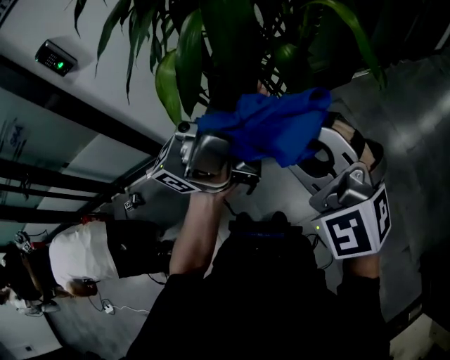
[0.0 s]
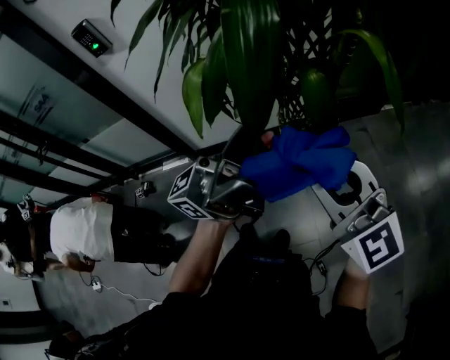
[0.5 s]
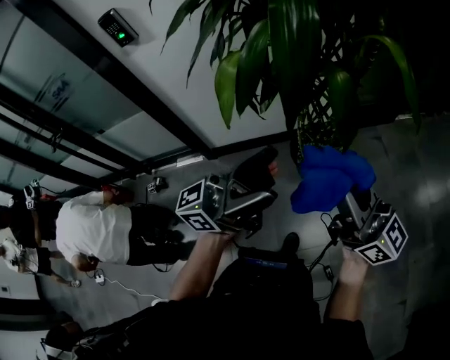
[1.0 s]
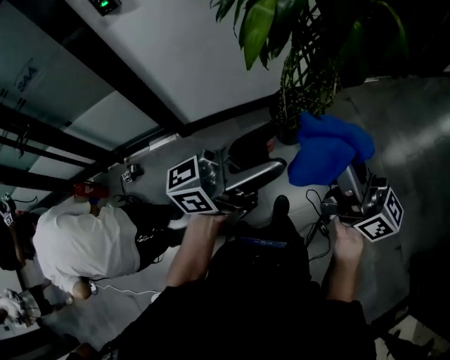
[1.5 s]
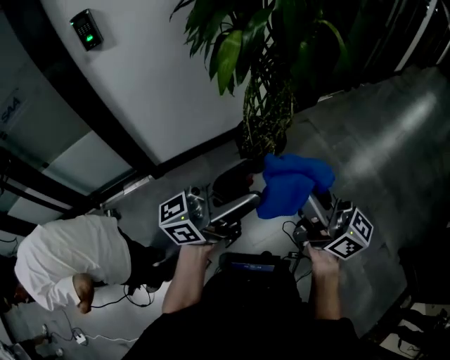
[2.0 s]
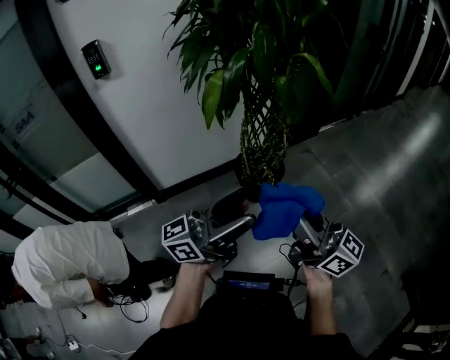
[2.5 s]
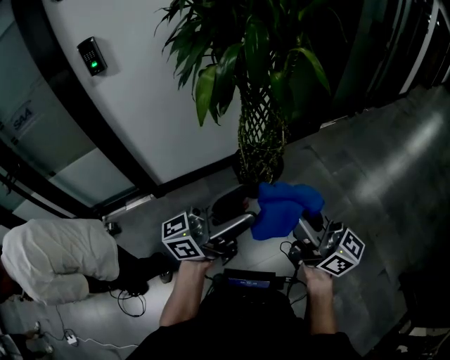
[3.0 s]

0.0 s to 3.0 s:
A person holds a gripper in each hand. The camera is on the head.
0.0 to 1.5 s: The left gripper heads backward, downward and to the left, covering about 20 cm, and swivels about 30 degrees. Meanwhile the right gripper shifts approximately 10 cm backward, and twists approximately 70 degrees clockwise, seen from behind.
1.5 to 3.0 s: The right gripper shifts approximately 15 cm backward and to the right, while the left gripper goes some 10 cm to the right and backward.

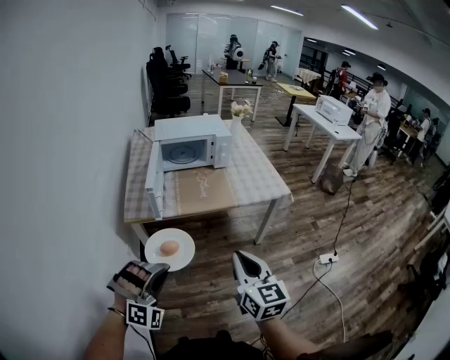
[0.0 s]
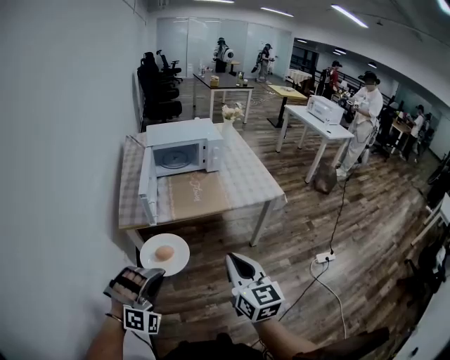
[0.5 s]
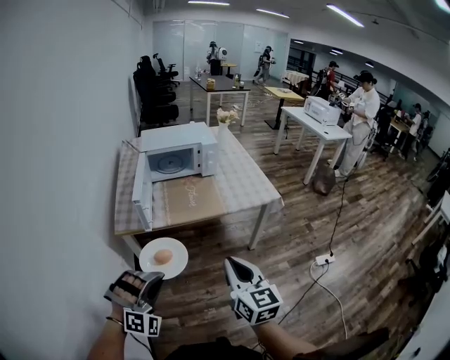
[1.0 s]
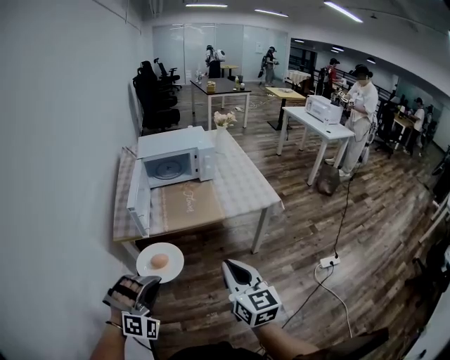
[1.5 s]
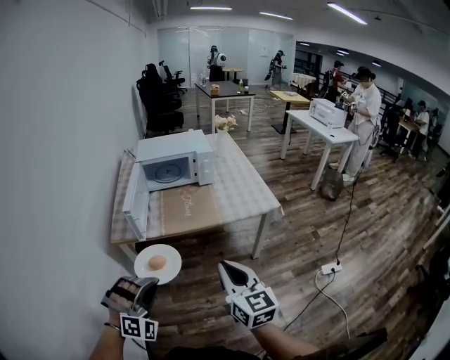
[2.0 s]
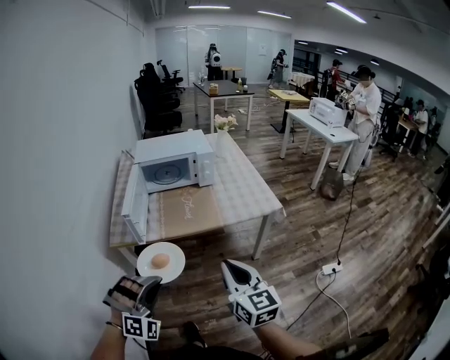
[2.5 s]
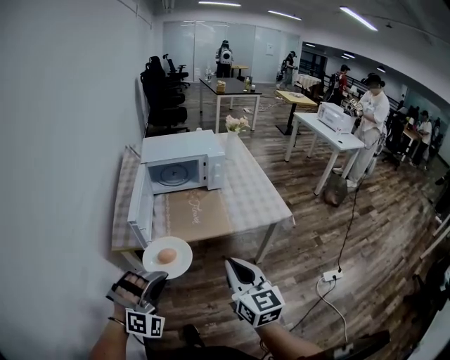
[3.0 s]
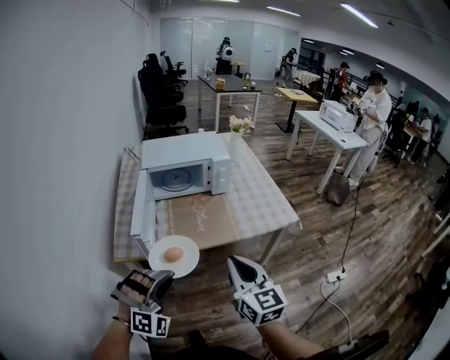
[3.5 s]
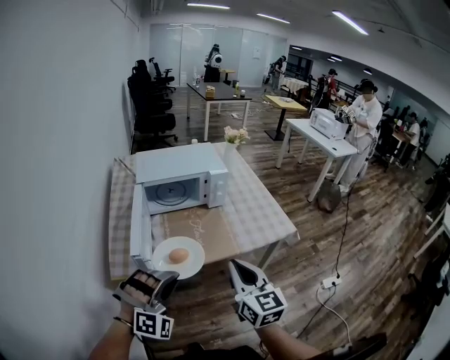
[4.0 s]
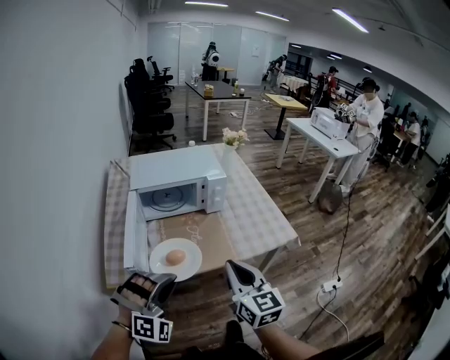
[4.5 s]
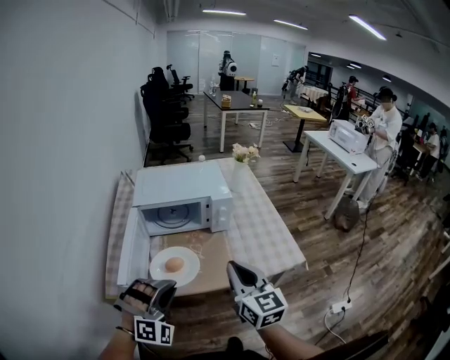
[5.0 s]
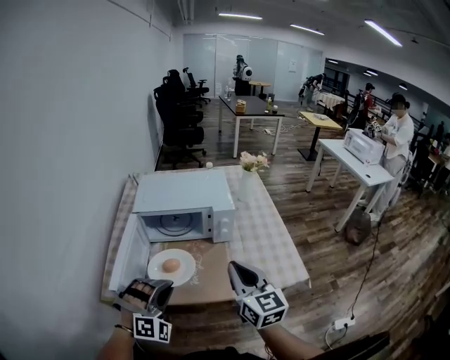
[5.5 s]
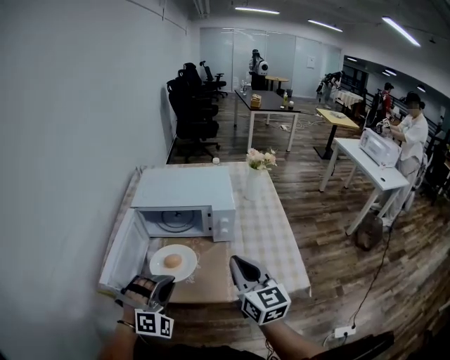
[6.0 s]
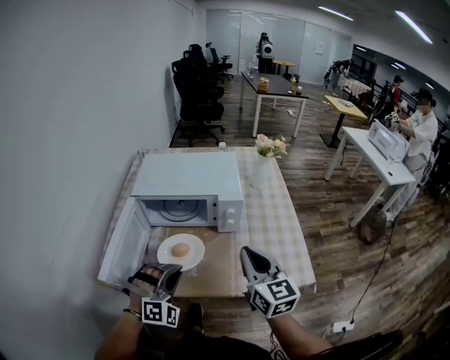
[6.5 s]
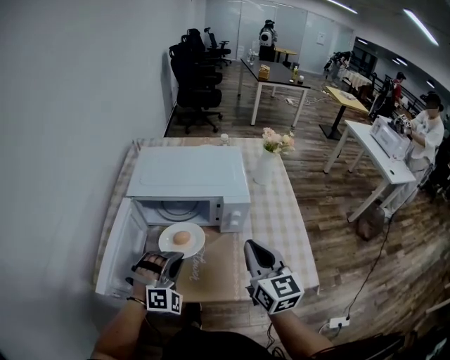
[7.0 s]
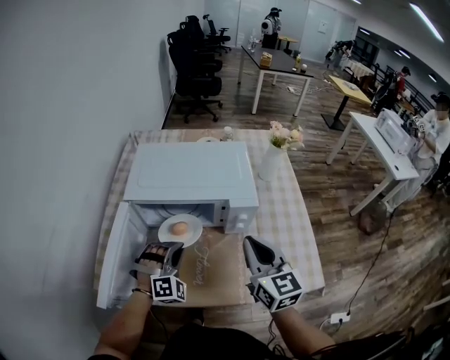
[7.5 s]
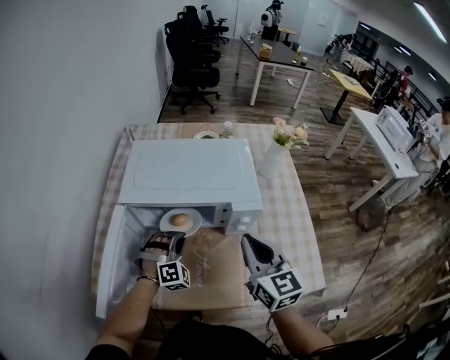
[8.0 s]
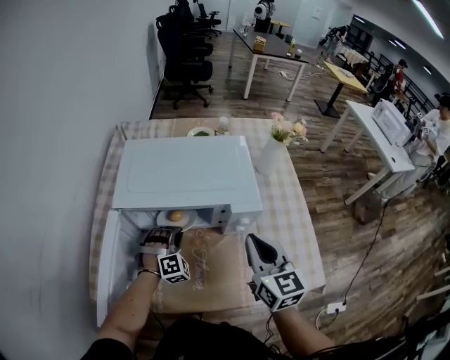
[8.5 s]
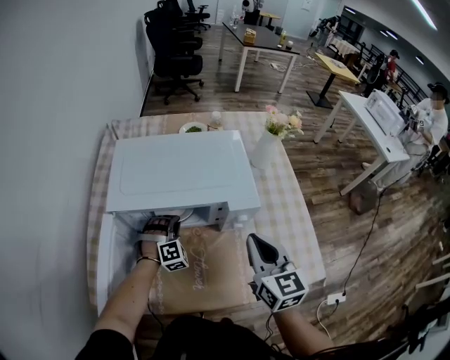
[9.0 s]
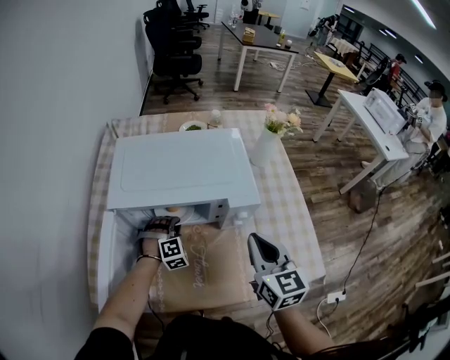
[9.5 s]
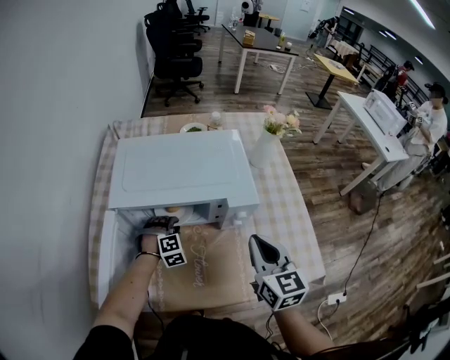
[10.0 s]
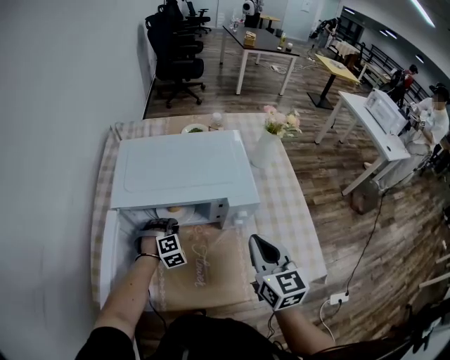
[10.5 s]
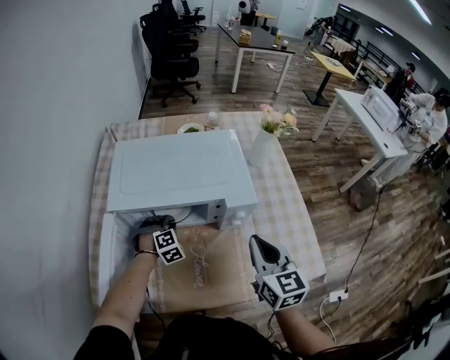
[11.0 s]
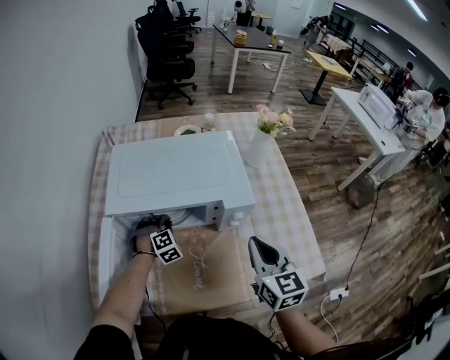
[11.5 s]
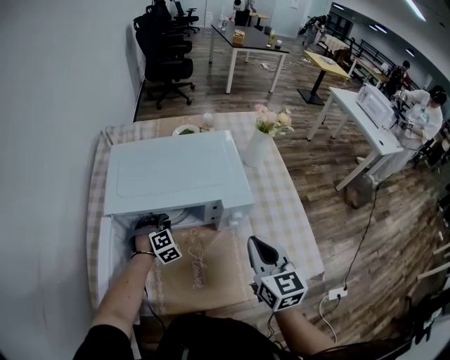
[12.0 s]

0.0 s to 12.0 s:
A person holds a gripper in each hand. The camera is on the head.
0.0 to 2.0 s: The two grippers go some 5 cm to the right.
2.0 to 4.0 s: The grippers both shift forward by roughly 20 cm.
4.0 to 6.0 s: Both grippers move forward and to the right, roughly 25 cm. The left gripper rotates approximately 20 degrees.
6.0 to 8.0 s: The left gripper is displaced forward and downward by approximately 30 cm; the right gripper goes about 15 cm forward.
8.0 to 10.0 s: The left gripper goes approximately 10 cm downward and forward.
10.0 to 12.0 s: The grippers make only small movements.

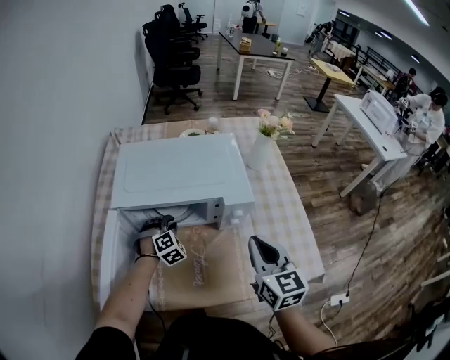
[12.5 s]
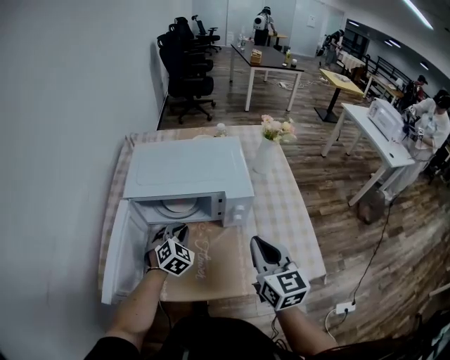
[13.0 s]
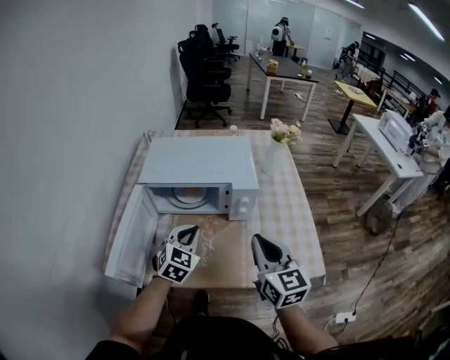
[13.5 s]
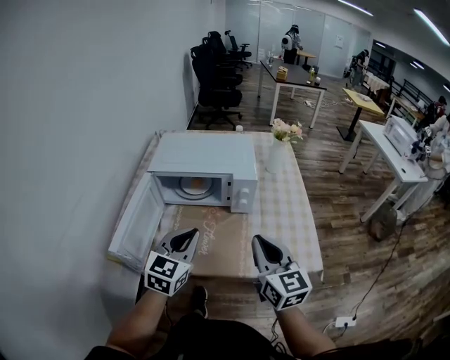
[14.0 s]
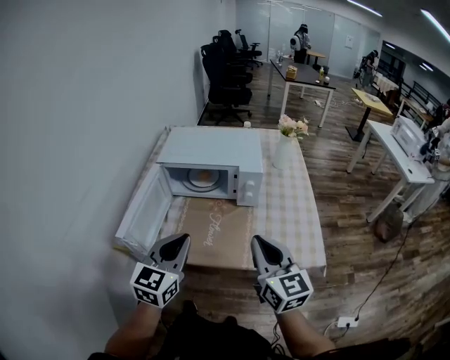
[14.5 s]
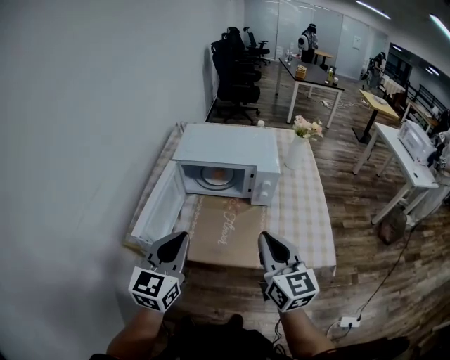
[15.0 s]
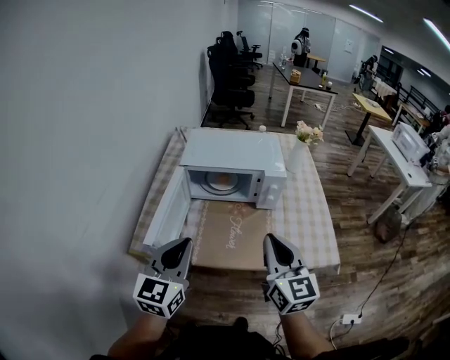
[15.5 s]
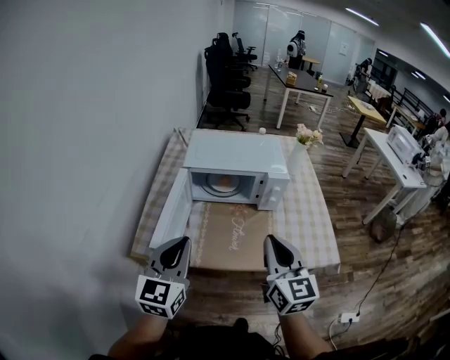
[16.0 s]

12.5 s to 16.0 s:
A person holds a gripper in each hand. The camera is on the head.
12.5 to 14.5 s: The left gripper moves backward and upward, about 40 cm, and tilts its fingers approximately 40 degrees upward, while the right gripper moves backward, some 20 cm.
14.5 to 16.0 s: The two grippers go roughly 10 cm to the left.

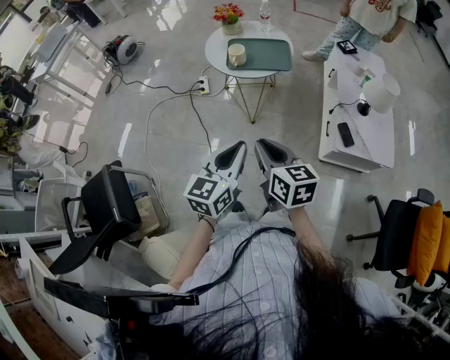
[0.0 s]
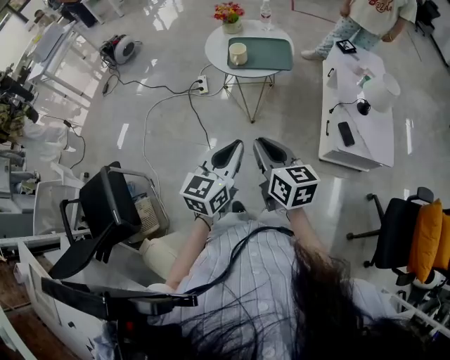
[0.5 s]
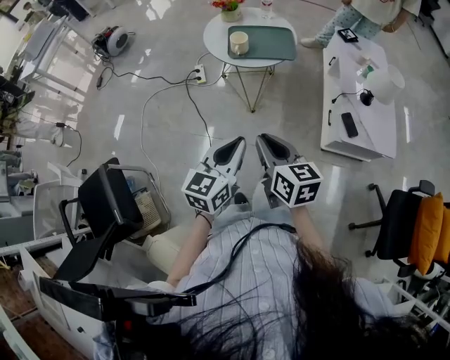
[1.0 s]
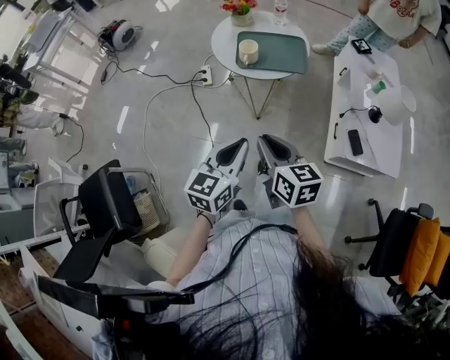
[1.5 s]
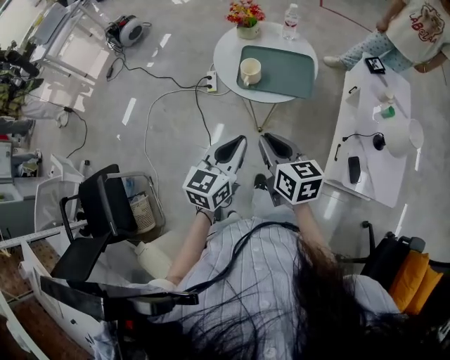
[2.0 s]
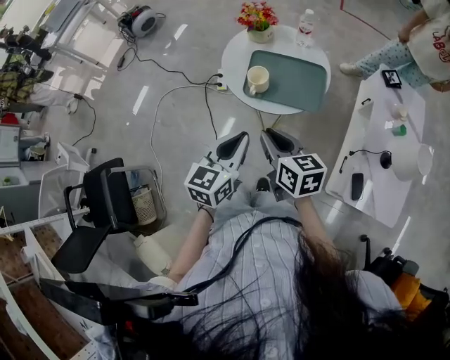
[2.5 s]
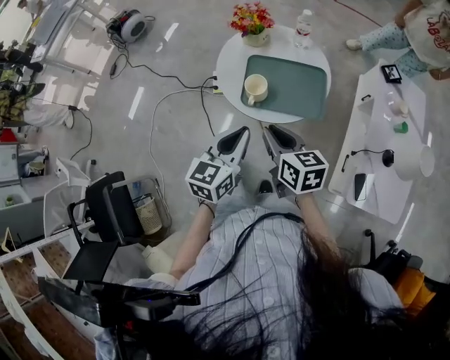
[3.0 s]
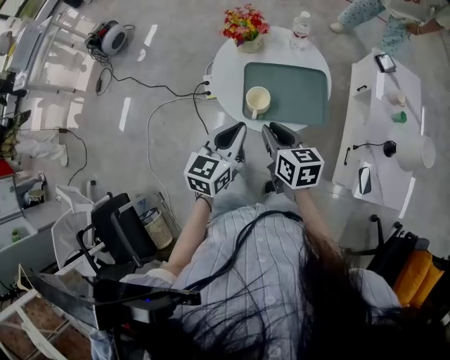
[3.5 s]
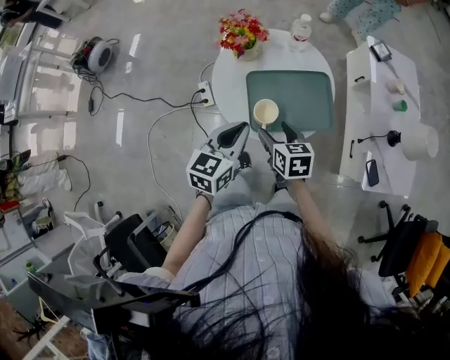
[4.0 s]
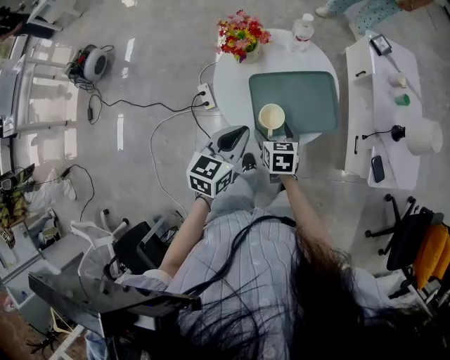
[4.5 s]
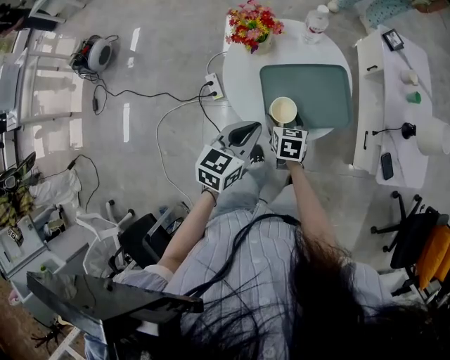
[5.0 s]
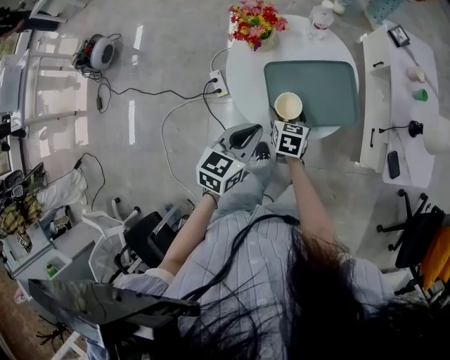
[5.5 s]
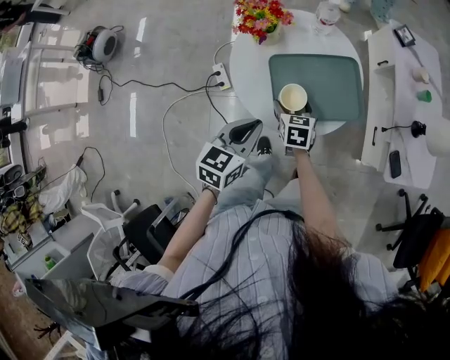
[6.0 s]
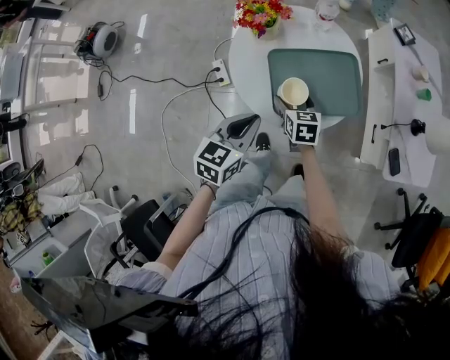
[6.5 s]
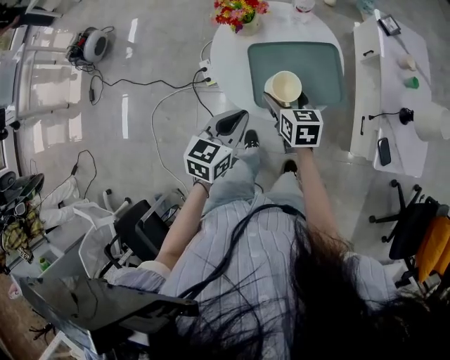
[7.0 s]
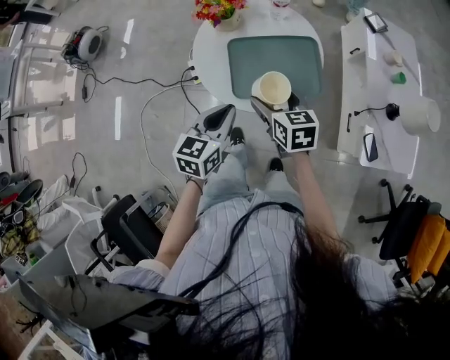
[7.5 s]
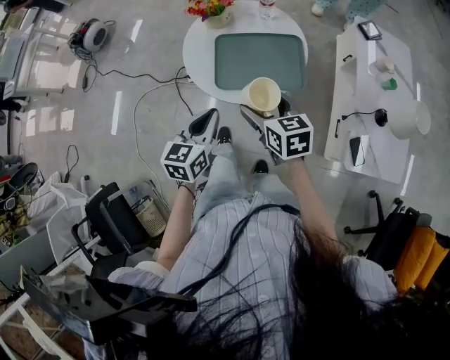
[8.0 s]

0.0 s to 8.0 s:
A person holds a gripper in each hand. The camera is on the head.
0.0 to 2.0 s: The grippers both shift forward by about 25 cm.
2.0 to 4.0 s: The left gripper shifts about 30 cm forward; the right gripper moves forward and downward, about 30 cm, rotates roughly 20 degrees, and opens.
4.0 to 6.0 s: The right gripper moves downward and forward, approximately 15 cm; the left gripper ends up about 5 cm from where it was.
6.0 to 8.0 s: The right gripper goes roughly 15 cm upward, and turns by about 30 degrees; the left gripper shifts by some 15 cm, and swivels about 20 degrees.
